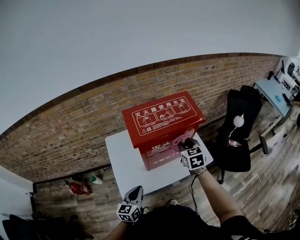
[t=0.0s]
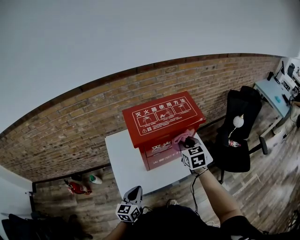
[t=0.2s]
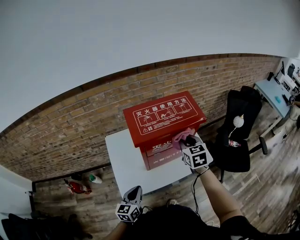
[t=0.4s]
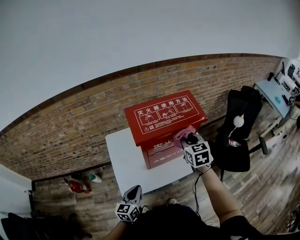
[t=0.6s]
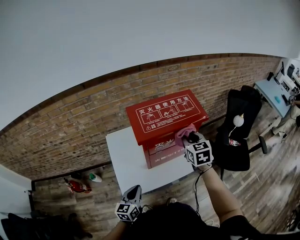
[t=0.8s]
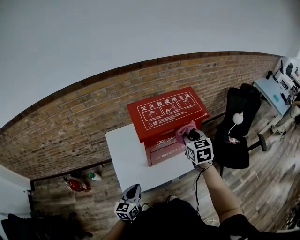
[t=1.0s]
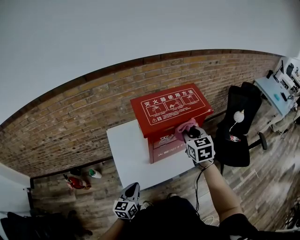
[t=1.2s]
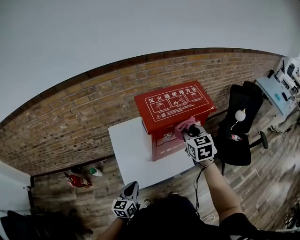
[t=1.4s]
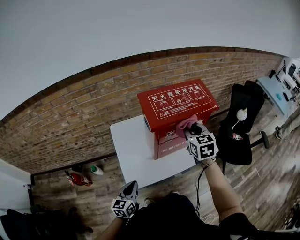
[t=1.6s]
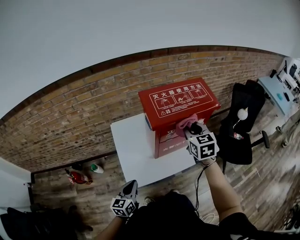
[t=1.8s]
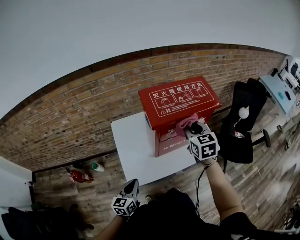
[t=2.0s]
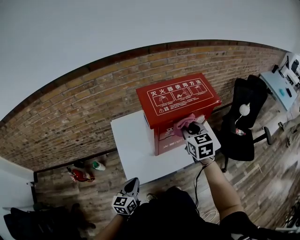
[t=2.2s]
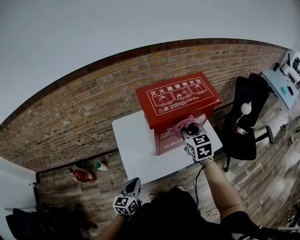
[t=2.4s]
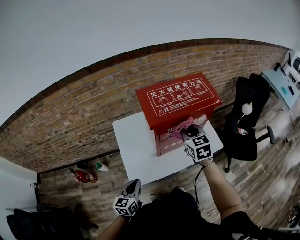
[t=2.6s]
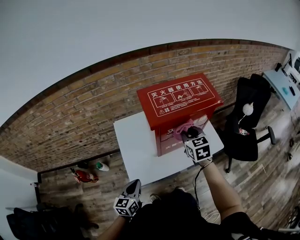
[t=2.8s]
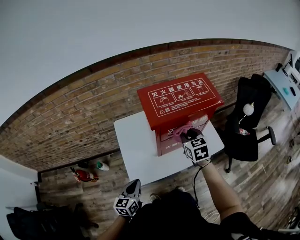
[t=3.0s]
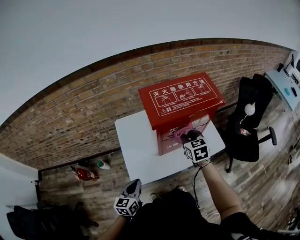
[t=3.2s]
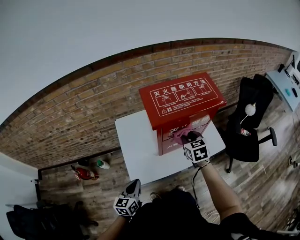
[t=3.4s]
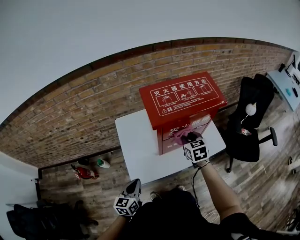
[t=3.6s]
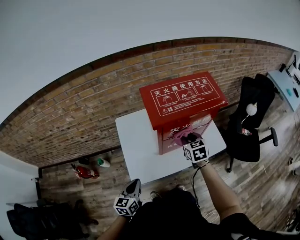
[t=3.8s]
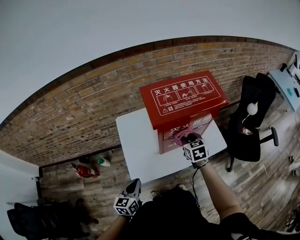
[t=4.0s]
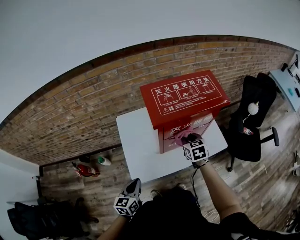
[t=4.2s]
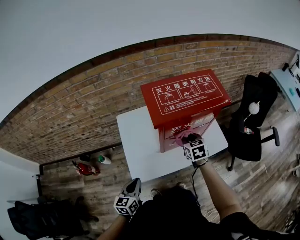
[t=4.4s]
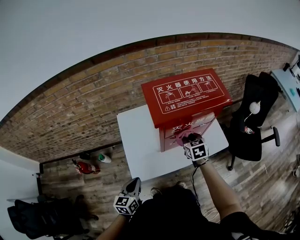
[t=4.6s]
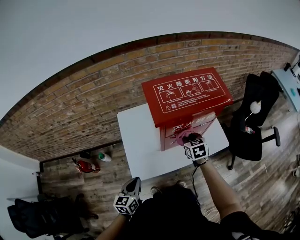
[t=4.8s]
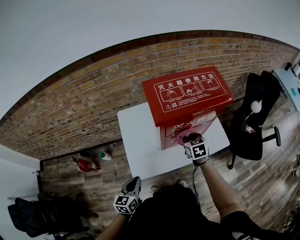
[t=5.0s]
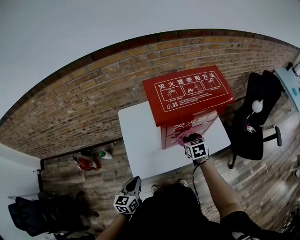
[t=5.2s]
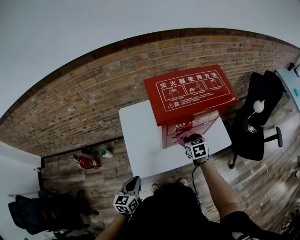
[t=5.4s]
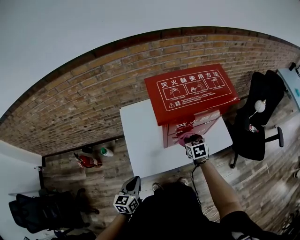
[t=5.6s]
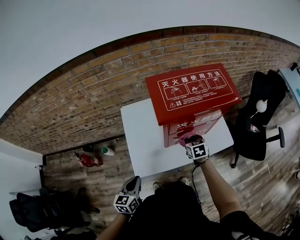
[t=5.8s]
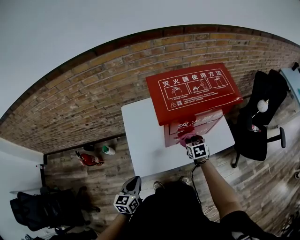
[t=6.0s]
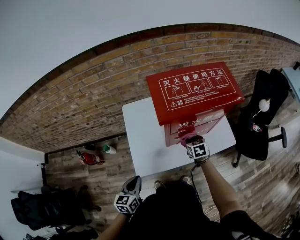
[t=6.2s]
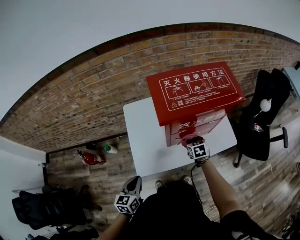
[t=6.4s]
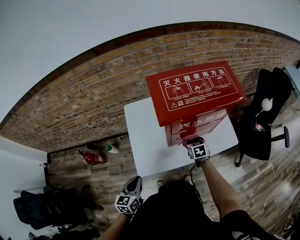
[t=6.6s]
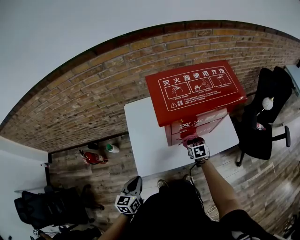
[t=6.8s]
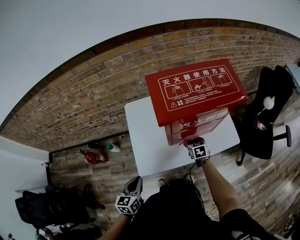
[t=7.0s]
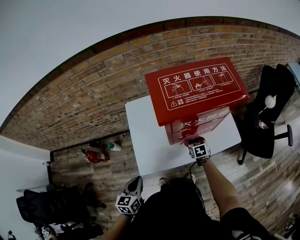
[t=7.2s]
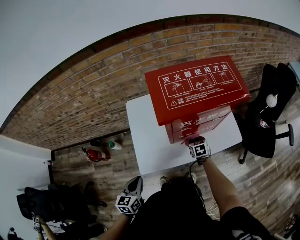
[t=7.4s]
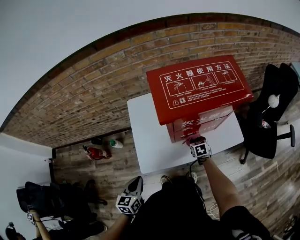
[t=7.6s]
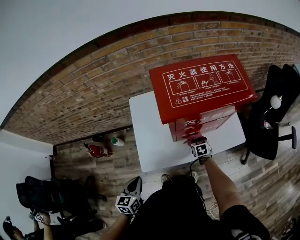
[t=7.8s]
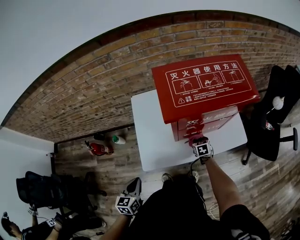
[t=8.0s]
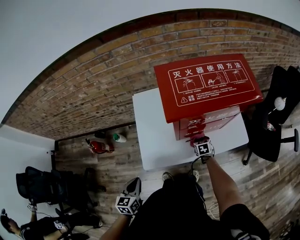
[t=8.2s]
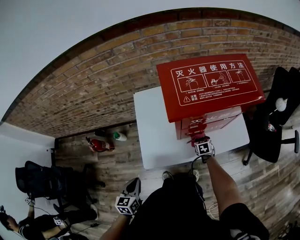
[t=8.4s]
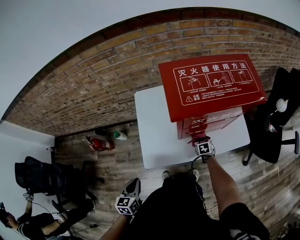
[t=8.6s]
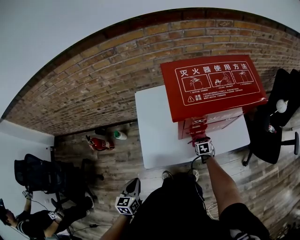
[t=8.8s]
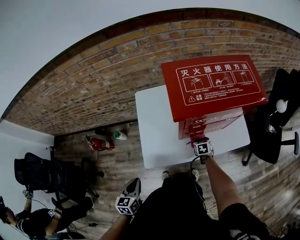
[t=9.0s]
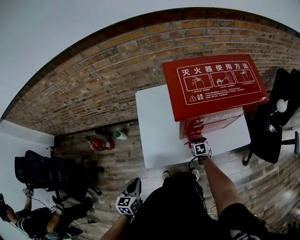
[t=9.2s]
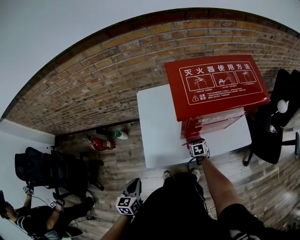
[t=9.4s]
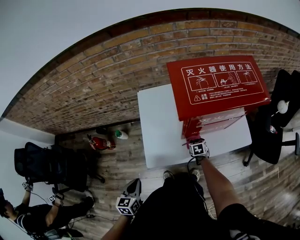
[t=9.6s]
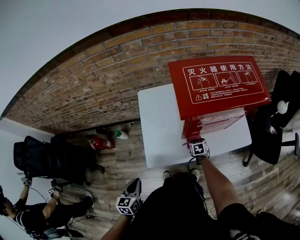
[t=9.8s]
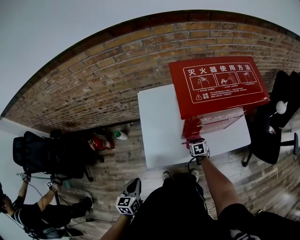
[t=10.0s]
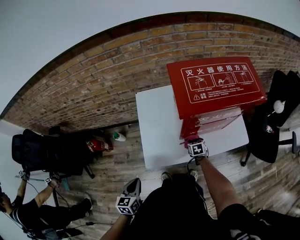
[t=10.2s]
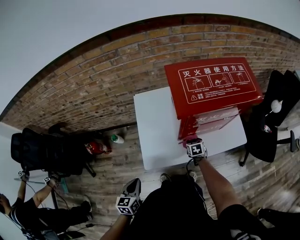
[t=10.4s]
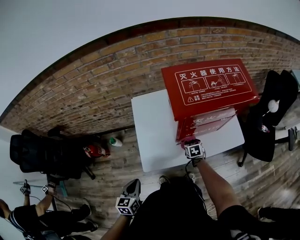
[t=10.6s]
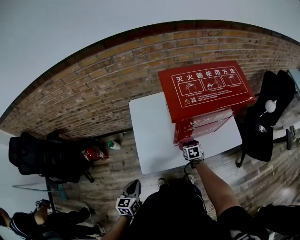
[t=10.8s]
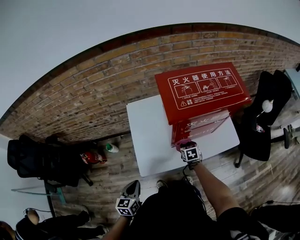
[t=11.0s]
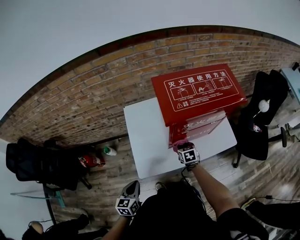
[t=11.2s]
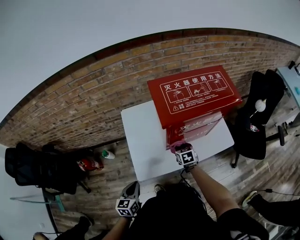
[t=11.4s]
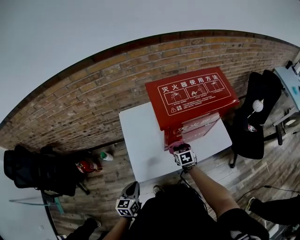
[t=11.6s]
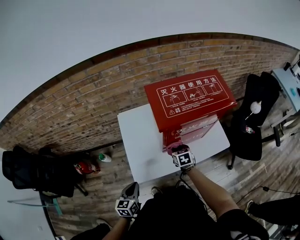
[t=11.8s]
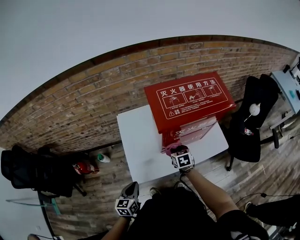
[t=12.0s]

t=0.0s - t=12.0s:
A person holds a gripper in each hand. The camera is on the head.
t=0.0s - t=1.6s: The left gripper moves to the left, roughly 10 cm. The right gripper moves to the left and upward, approximately 10 cm.
t=1.6s - t=3.0s: The right gripper travels downward by about 10 cm.
t=3.0s - t=4.4s: The right gripper goes roughly 10 cm downward.
t=4.4s - t=6.0s: The right gripper moves downward, approximately 10 cm.
t=6.0s - t=7.6s: The right gripper is displaced downward by some 10 cm.
t=7.6s - t=9.0s: The left gripper ends up approximately 5 cm from where it was. Meanwhile the right gripper travels downward by some 5 cm.
t=9.0s - t=10.4s: The right gripper ends up some 5 cm from where it was.
t=10.4s - t=12.0s: The left gripper goes approximately 10 cm forward and to the right. The right gripper travels upward by roughly 15 cm.

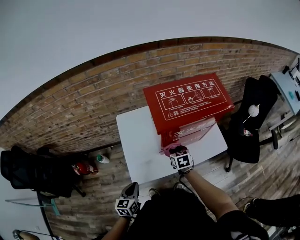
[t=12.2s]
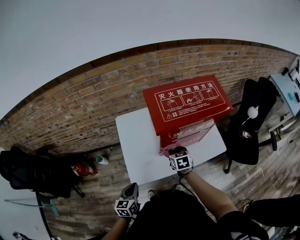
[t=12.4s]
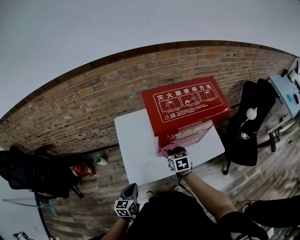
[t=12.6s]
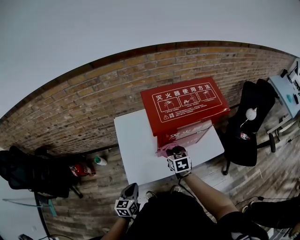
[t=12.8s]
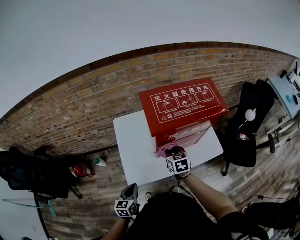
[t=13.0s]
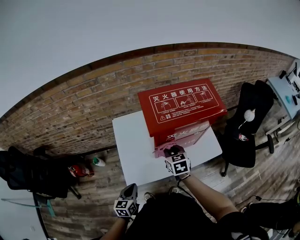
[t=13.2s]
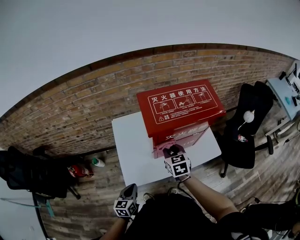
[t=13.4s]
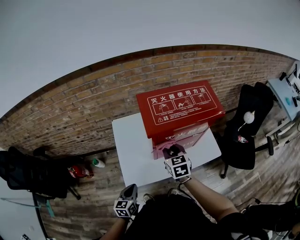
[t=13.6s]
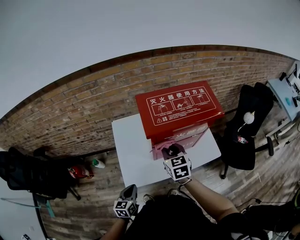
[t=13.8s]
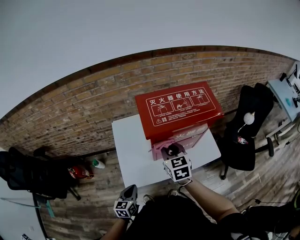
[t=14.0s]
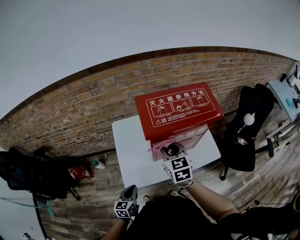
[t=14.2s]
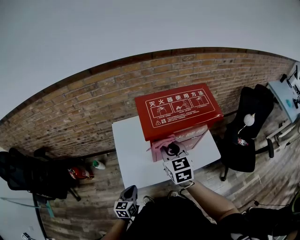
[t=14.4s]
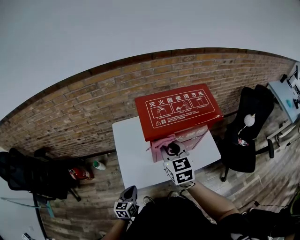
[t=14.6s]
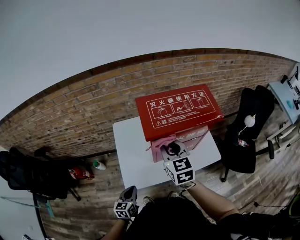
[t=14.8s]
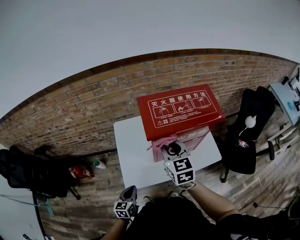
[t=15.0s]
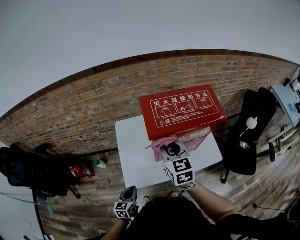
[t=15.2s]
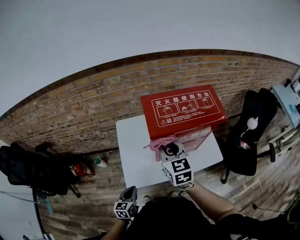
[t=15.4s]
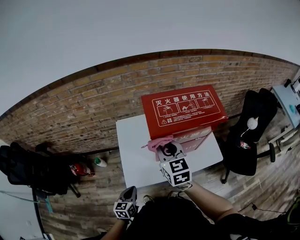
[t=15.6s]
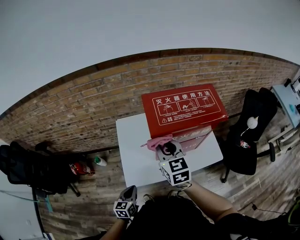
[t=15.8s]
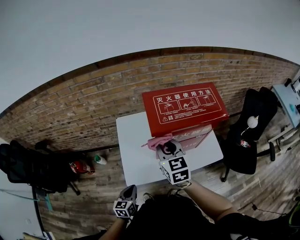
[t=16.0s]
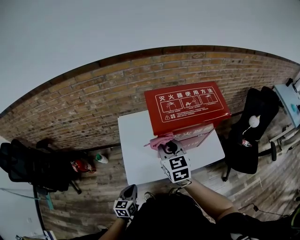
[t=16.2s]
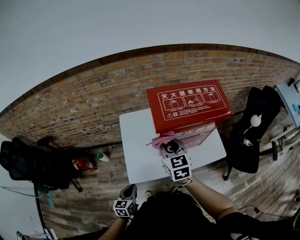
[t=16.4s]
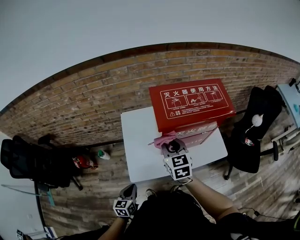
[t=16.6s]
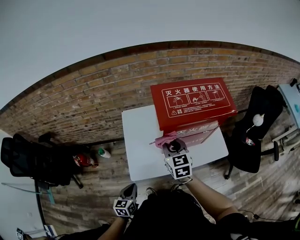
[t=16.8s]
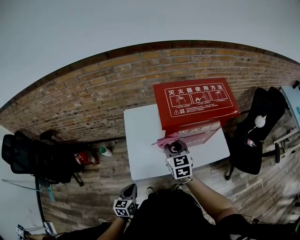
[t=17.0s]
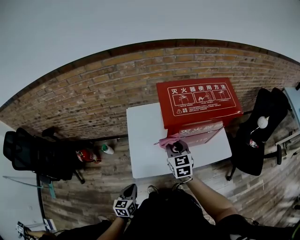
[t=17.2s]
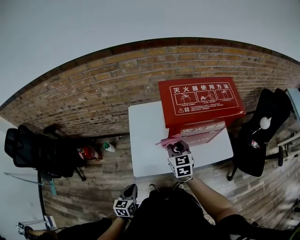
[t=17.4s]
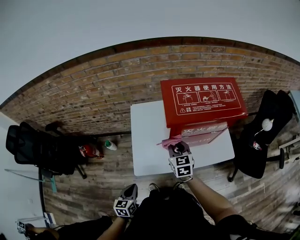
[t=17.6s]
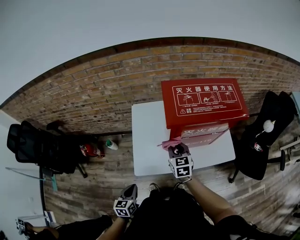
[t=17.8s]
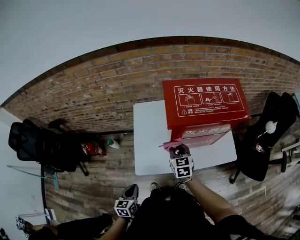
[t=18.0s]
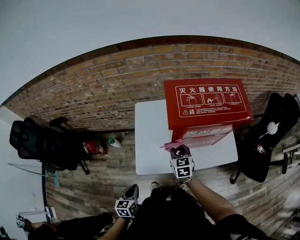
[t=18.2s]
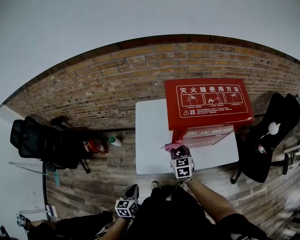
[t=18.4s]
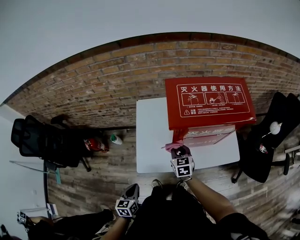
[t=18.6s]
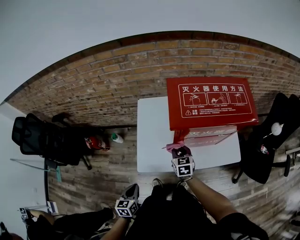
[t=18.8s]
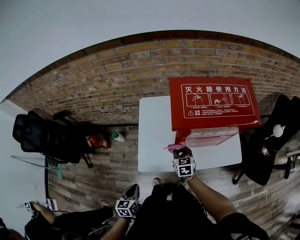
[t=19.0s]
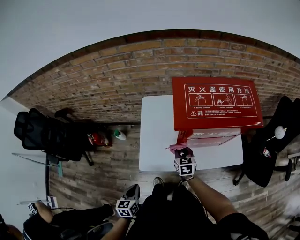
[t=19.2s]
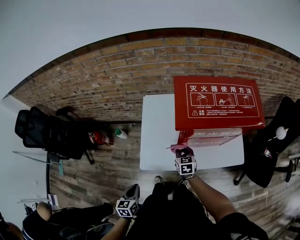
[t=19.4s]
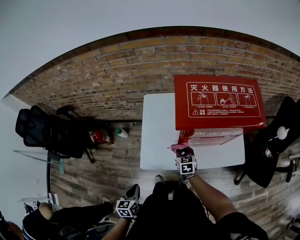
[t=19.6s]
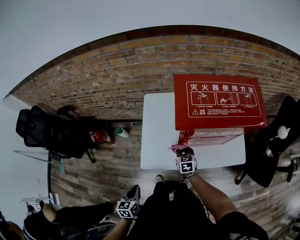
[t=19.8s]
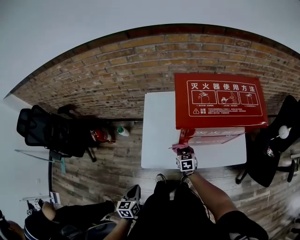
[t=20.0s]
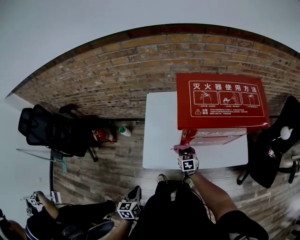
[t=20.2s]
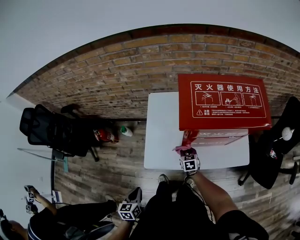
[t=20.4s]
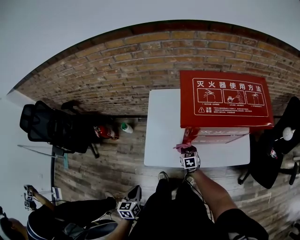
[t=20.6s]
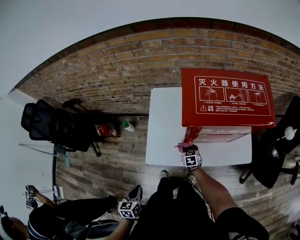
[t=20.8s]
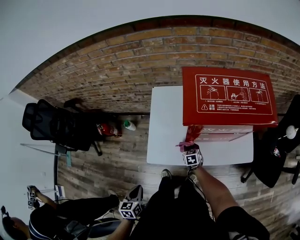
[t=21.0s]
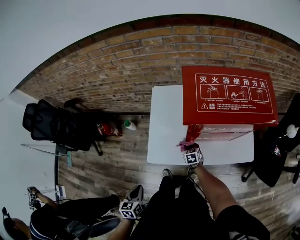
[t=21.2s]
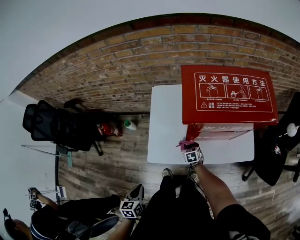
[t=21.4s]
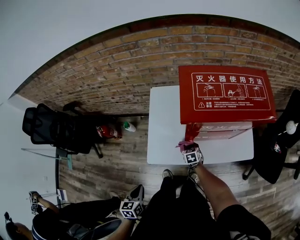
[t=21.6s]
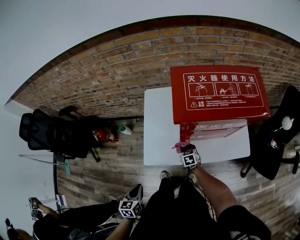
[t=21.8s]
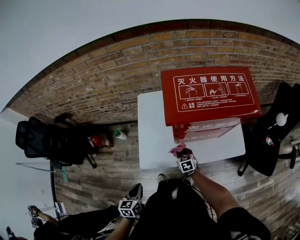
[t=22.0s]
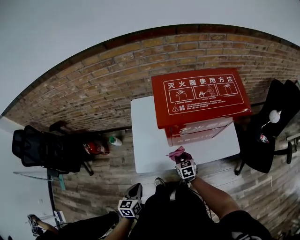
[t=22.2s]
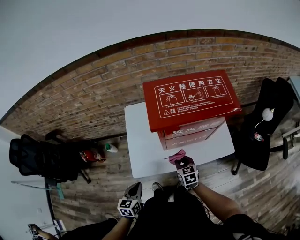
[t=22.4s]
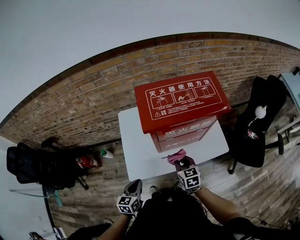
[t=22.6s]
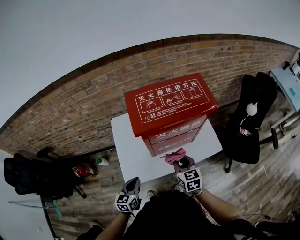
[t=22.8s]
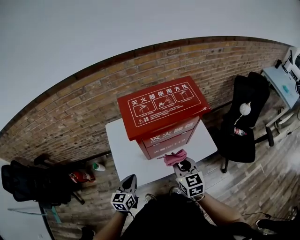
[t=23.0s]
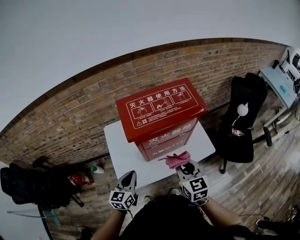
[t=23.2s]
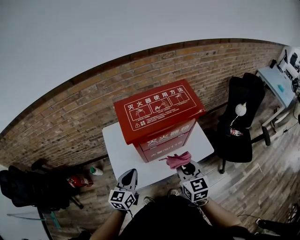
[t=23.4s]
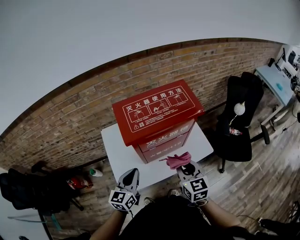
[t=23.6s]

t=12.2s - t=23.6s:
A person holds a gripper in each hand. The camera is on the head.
t=12.2s - t=13.6s: The right gripper goes about 15 cm upward.
t=13.6s - t=15.0s: The right gripper heads upward, covering approximately 10 cm.
t=15.0s - t=16.4s: The right gripper changes place by approximately 5 cm.
t=16.4s - t=17.8s: The left gripper shifts by approximately 5 cm, while the right gripper is displaced downward by about 15 cm.
t=17.8s - t=19.4s: The right gripper travels downward by about 15 cm.
t=19.4s - t=20.8s: The right gripper moves downward, approximately 10 cm.
t=20.8s - t=22.2s: The right gripper goes about 10 cm upward and backward; the left gripper moves to the right and forward, about 10 cm.
t=22.2s - t=23.6s: The left gripper moves upward, forward and to the right, about 25 cm, and changes its angle by about 30 degrees; the right gripper moves upward and to the right, about 30 cm, and changes its angle by some 30 degrees.
